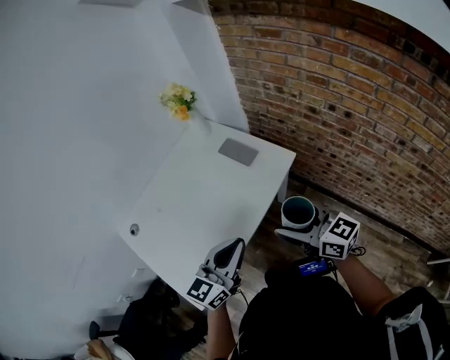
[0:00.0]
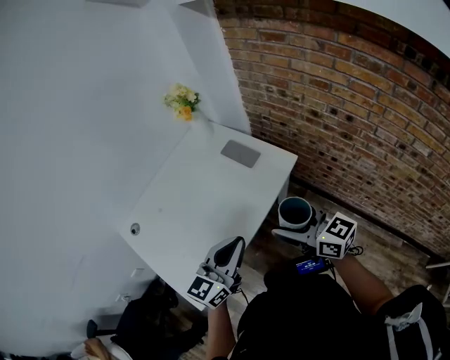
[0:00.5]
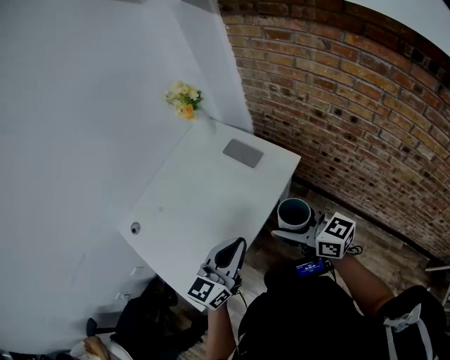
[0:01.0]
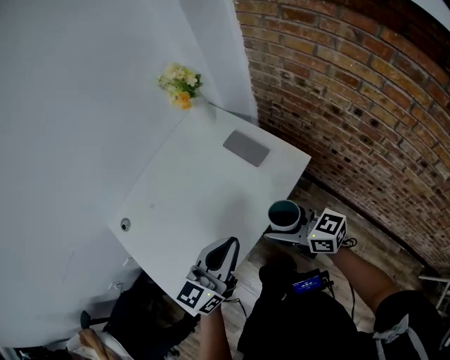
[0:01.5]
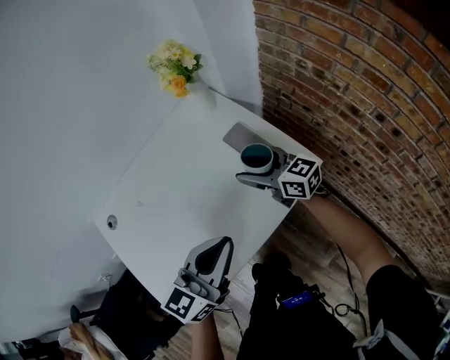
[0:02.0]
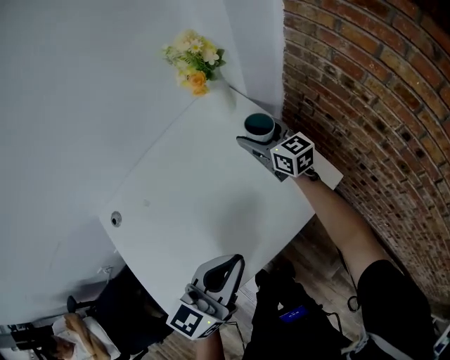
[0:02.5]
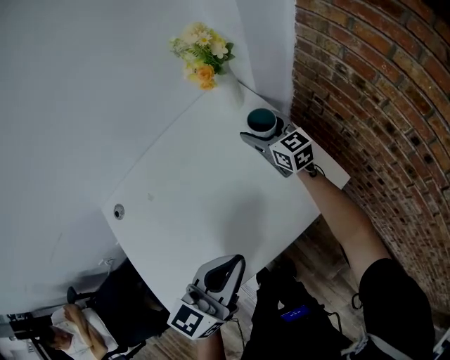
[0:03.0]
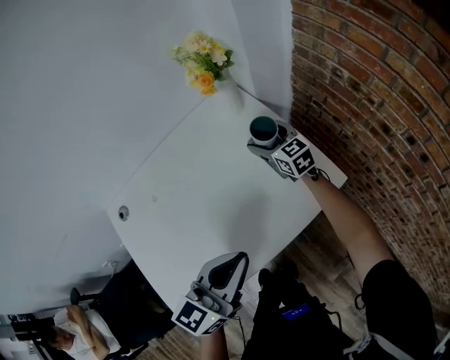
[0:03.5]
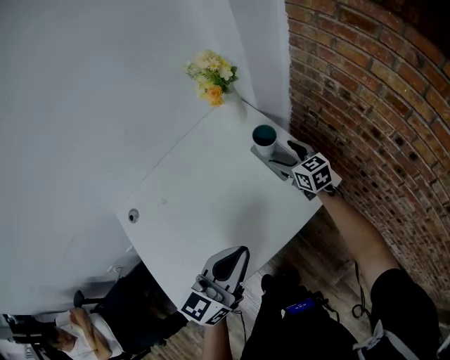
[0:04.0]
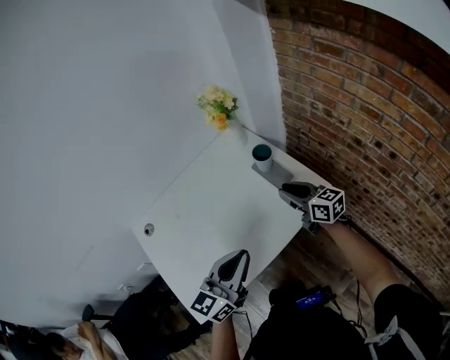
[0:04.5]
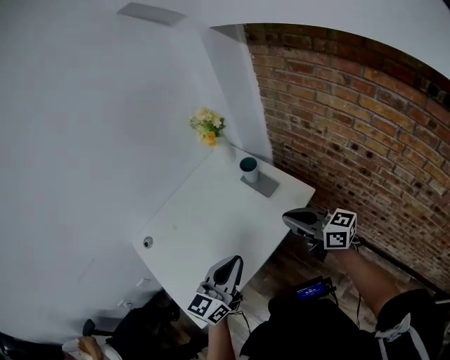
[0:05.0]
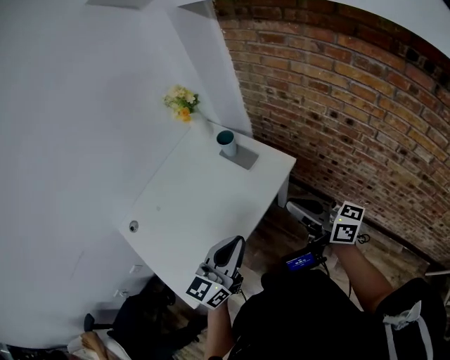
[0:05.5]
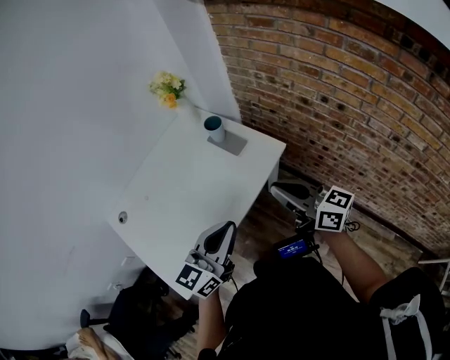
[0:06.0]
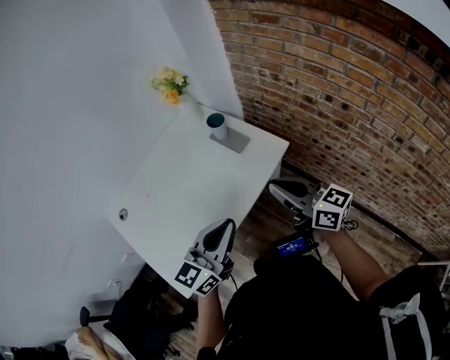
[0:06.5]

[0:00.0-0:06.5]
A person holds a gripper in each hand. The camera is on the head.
0:00.0 to 0:02.0: The left gripper is displaced forward by some 15 cm. Meanwhile the right gripper is displaced forward and downward by roughly 30 cm.
0:02.0 to 0:04.5: The left gripper shifts some 5 cm backward. Meanwhile the right gripper goes forward and returns, roughly 15 cm each way, and closes.
0:04.5 to 0:06.5: The right gripper shifts approximately 20 cm backward and upward, while the left gripper goes about 5 cm backward.

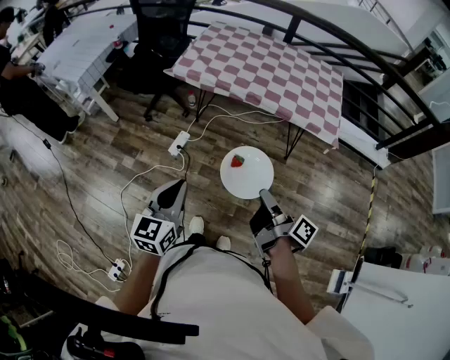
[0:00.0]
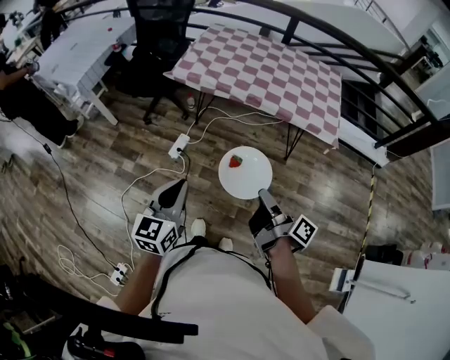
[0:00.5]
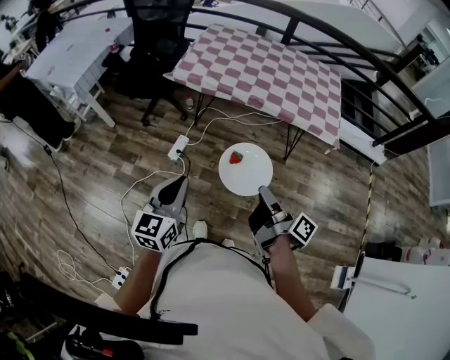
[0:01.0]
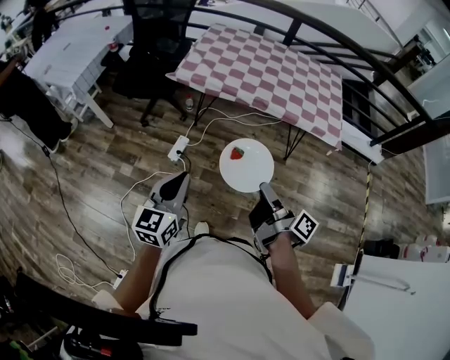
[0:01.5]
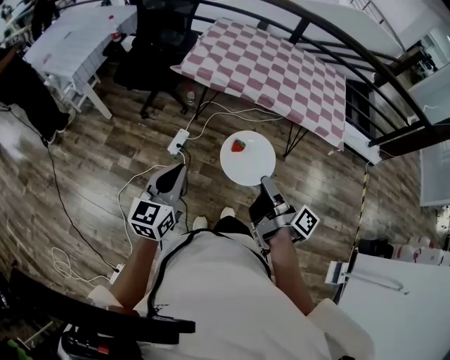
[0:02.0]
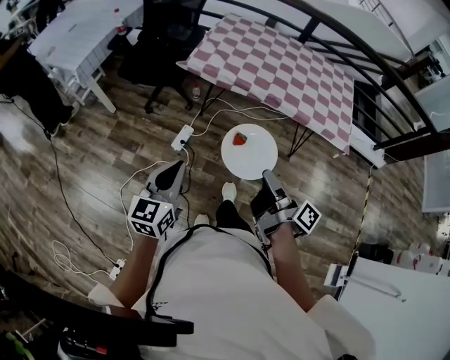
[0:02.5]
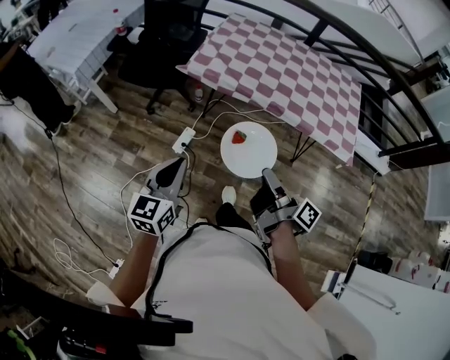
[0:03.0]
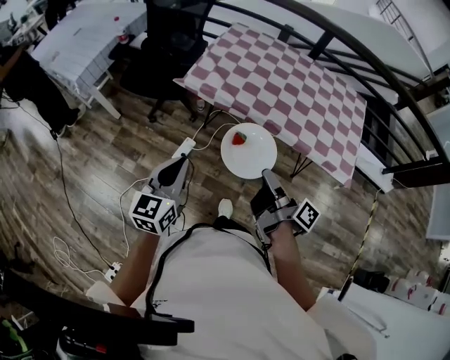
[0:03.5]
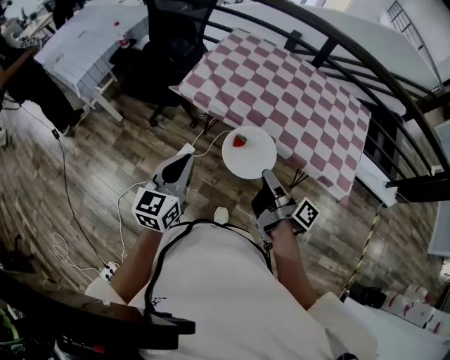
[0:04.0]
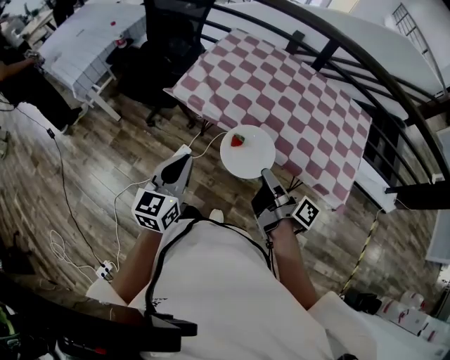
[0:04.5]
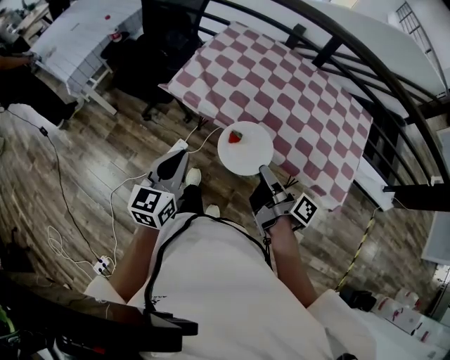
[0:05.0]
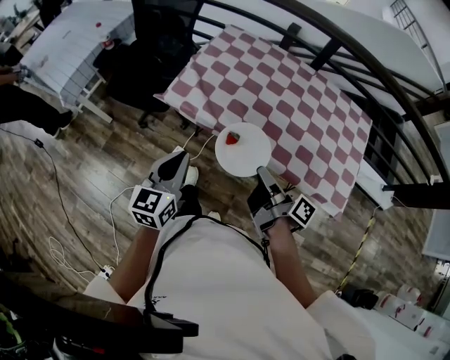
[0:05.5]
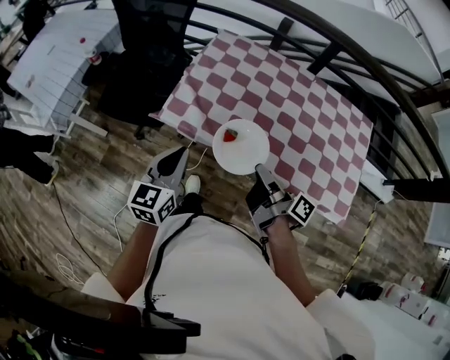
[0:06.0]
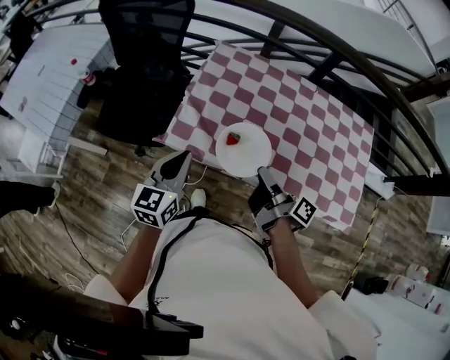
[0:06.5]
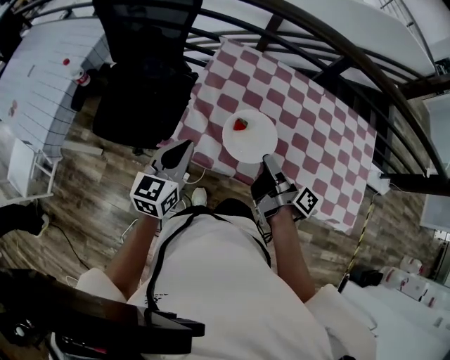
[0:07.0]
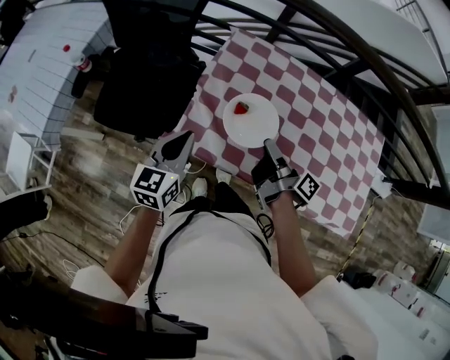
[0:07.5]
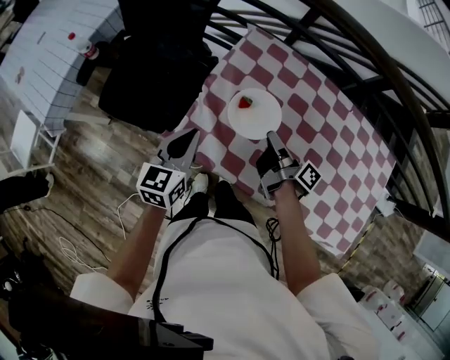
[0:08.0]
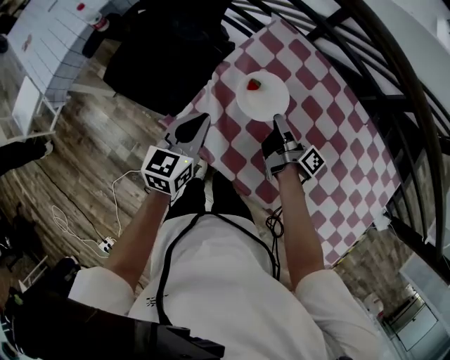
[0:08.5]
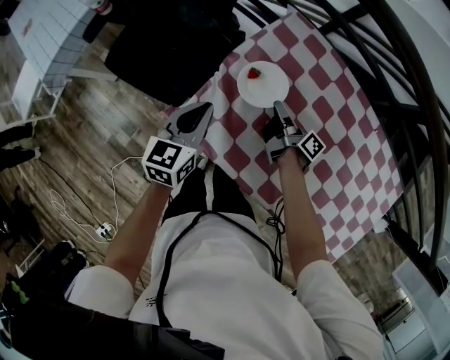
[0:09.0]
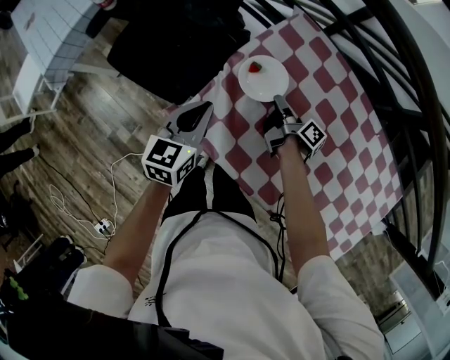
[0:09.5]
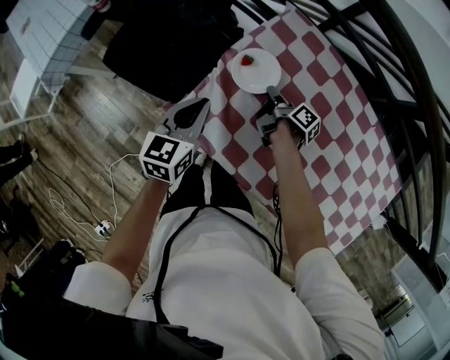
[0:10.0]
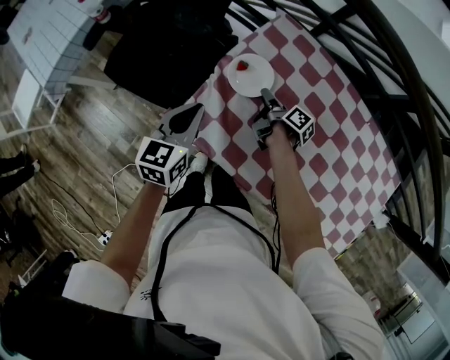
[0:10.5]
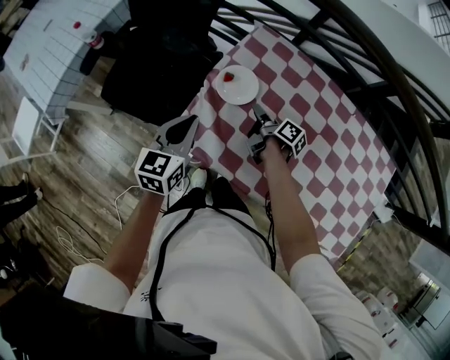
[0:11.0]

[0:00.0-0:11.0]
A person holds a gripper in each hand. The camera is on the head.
0:00.0 to 0:02.0: The left gripper changes place by some 15 cm.
0:02.0 to 0:03.5: The left gripper changes place by roughly 20 cm.
0:03.5 to 0:05.5: The left gripper moves approximately 20 cm.
0:05.5 to 0:07.5: The left gripper changes place by about 35 cm.
0:07.5 to 0:09.0: The left gripper shifts by roughly 15 cm.
0:09.0 to 0:11.0: The left gripper travels upward by about 5 cm.

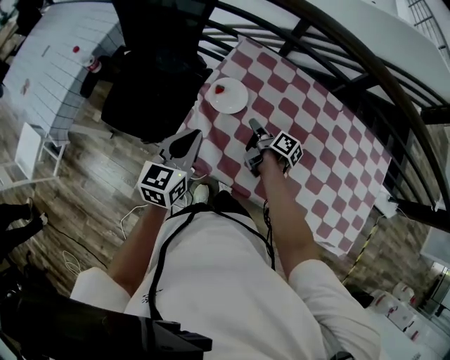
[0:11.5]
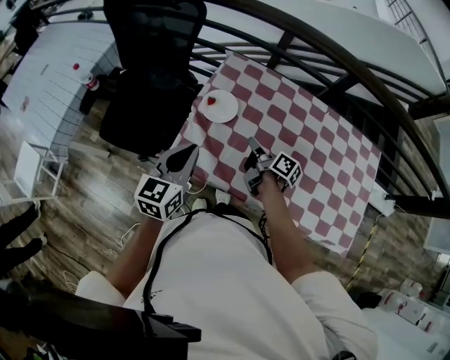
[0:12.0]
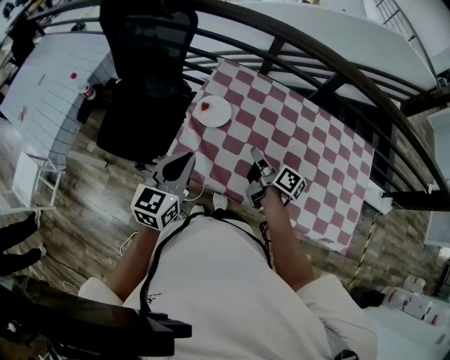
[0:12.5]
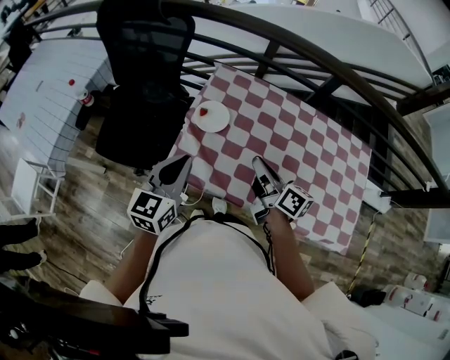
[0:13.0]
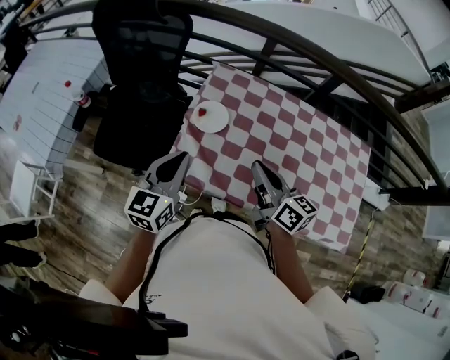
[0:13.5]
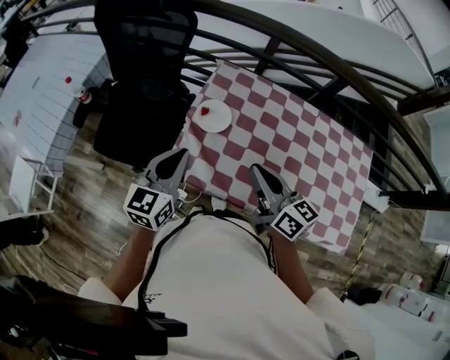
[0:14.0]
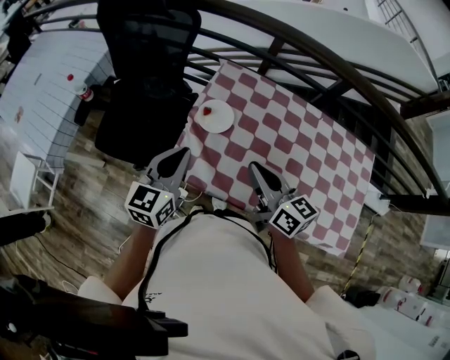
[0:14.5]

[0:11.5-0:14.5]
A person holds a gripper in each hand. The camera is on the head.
0:11.5 to 0:13.0: The left gripper shifts some 5 cm upward.

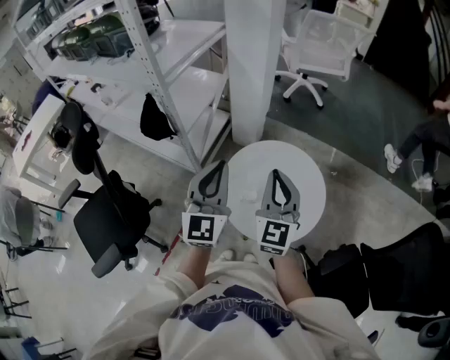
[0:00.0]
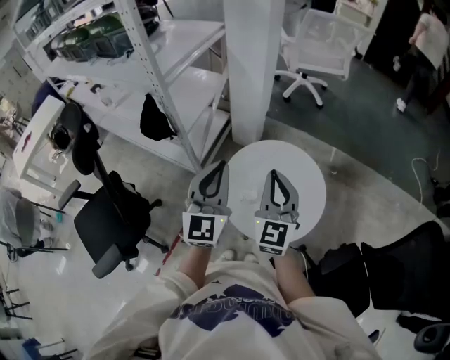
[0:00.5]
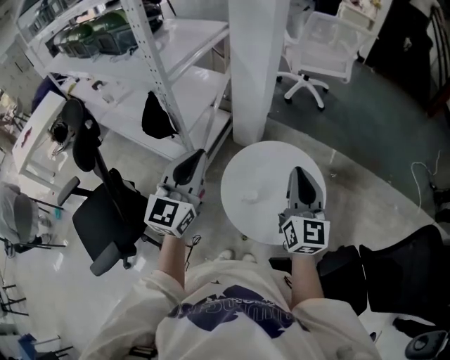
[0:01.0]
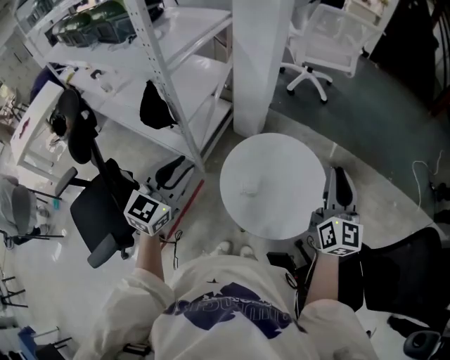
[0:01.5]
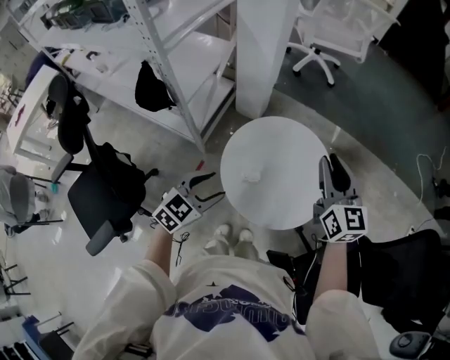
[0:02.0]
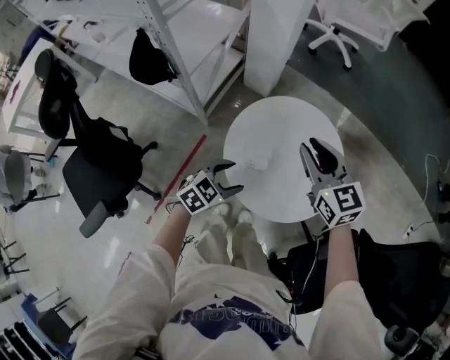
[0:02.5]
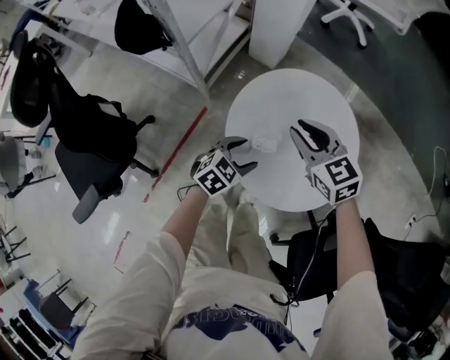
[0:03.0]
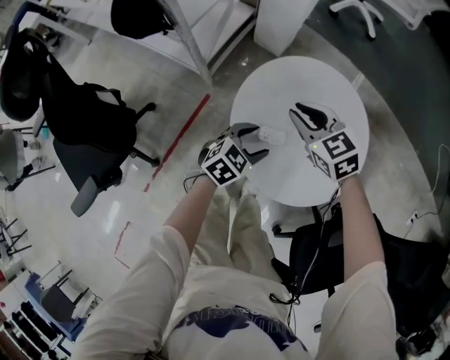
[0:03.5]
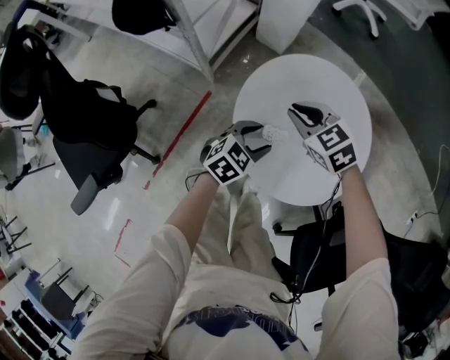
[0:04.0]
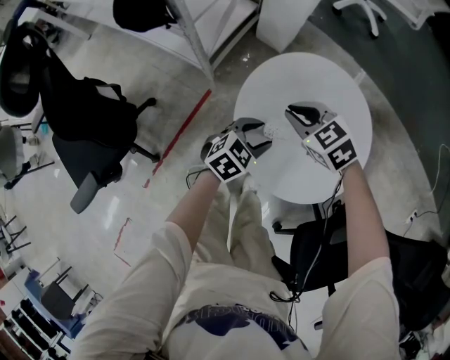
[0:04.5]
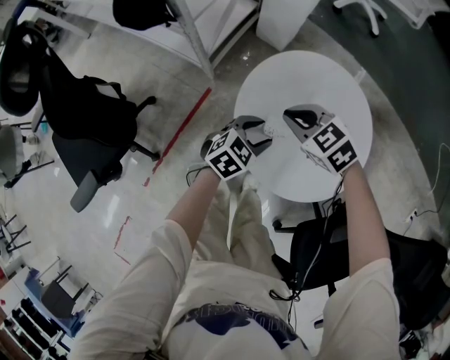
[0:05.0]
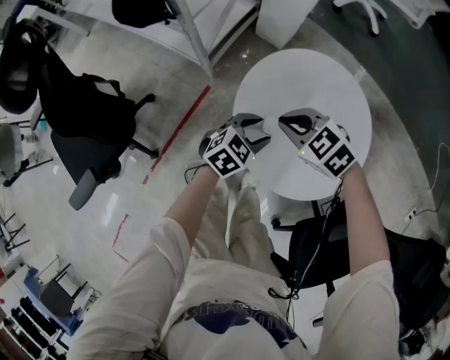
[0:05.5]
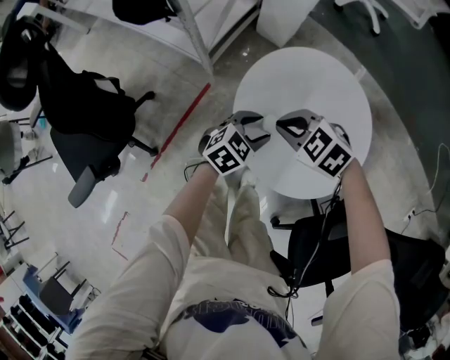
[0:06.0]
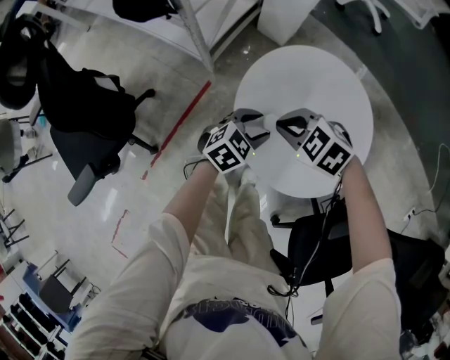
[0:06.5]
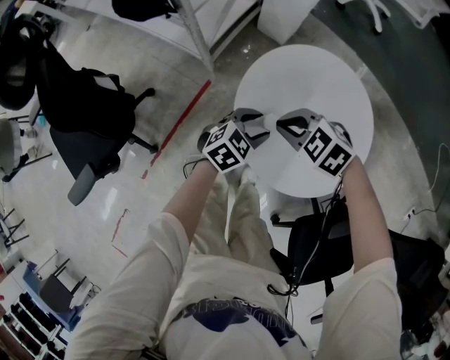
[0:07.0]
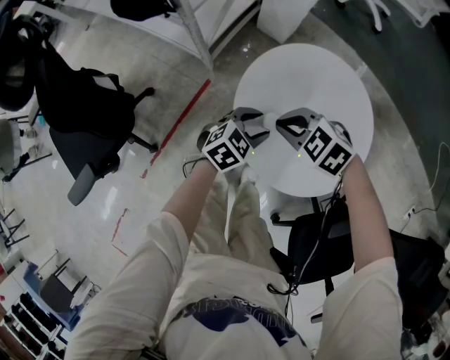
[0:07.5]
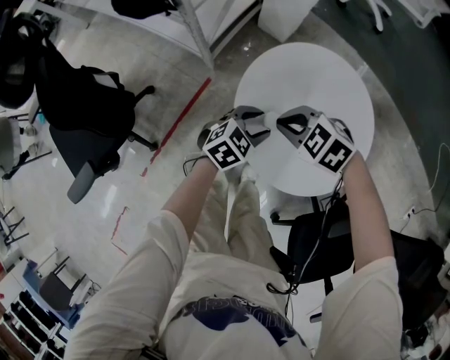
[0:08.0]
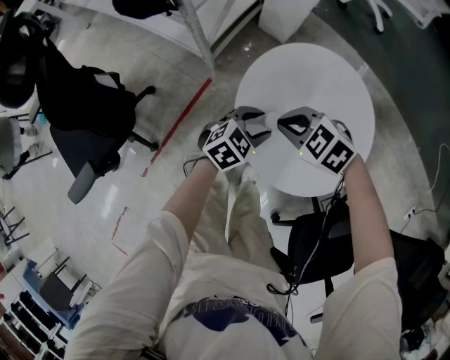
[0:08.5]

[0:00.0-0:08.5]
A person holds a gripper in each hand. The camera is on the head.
0:00.0 to 0:02.0: The left gripper heads downward, covering roughly 20 cm, points its fingers roughly 40 degrees further downward, and opens up; the right gripper moves to the right and forward, about 10 cm, swivels approximately 20 degrees, and opens its fingers.
0:02.0 to 0:04.0: The left gripper heads downward, covering roughly 20 cm. Meanwhile the right gripper heads downward and to the left, covering roughly 30 cm, and angles its fingers downward, by about 40 degrees.
0:04.0 to 0:06.5: The right gripper moves about 10 cm, and turns by about 30 degrees.
0:06.5 to 0:08.5: The two grippers keep their place.
